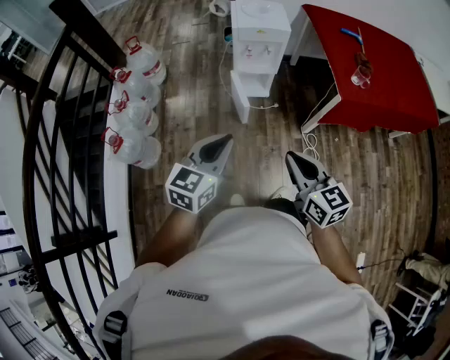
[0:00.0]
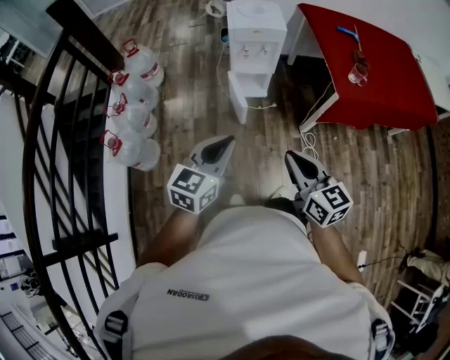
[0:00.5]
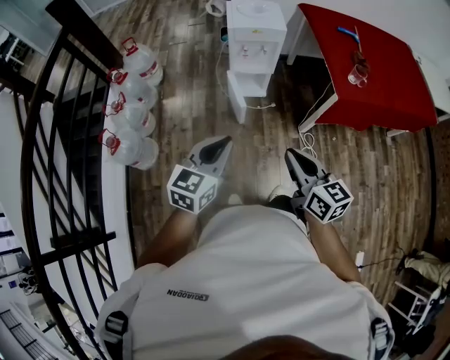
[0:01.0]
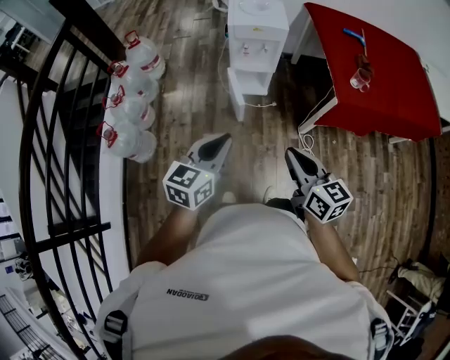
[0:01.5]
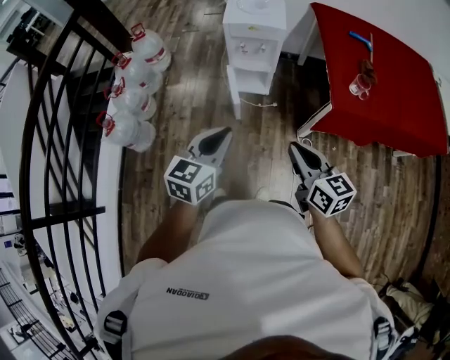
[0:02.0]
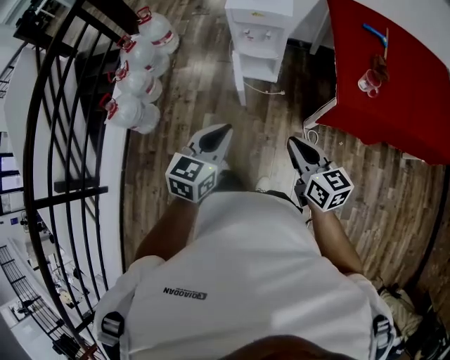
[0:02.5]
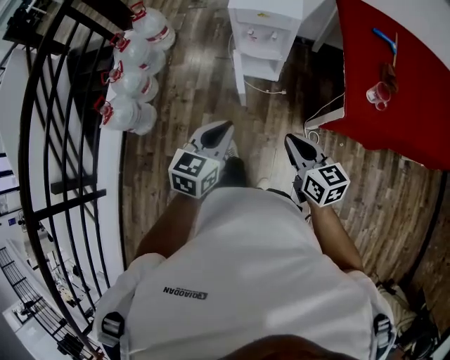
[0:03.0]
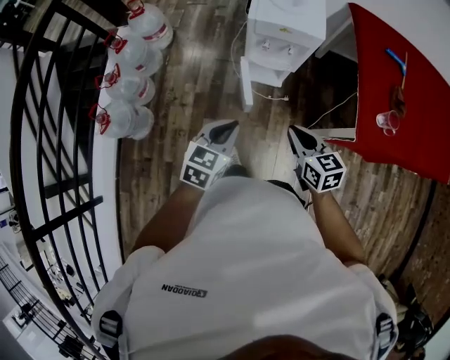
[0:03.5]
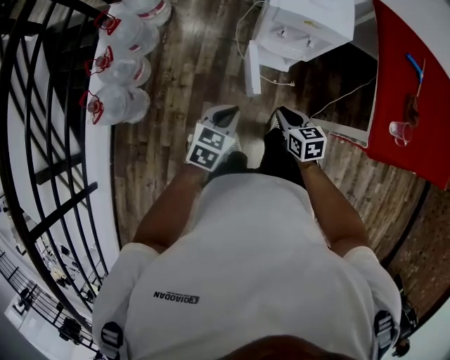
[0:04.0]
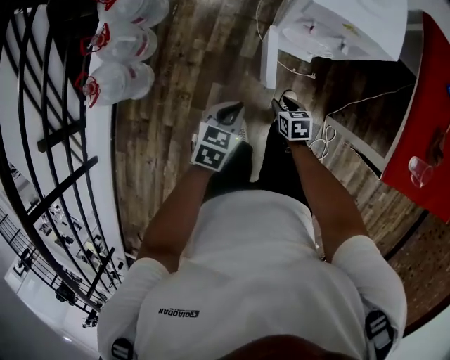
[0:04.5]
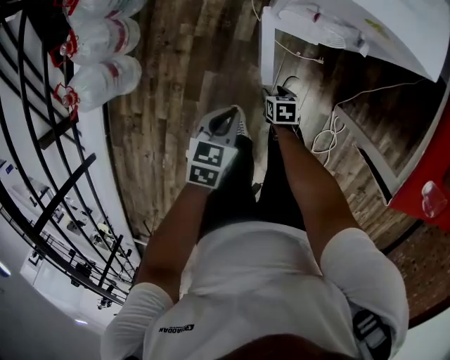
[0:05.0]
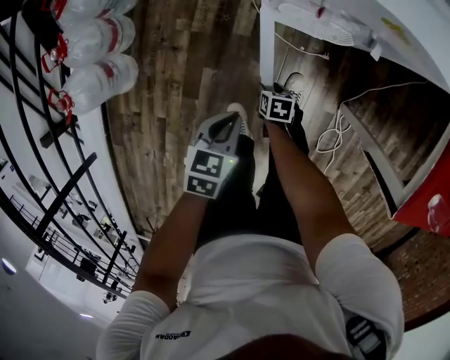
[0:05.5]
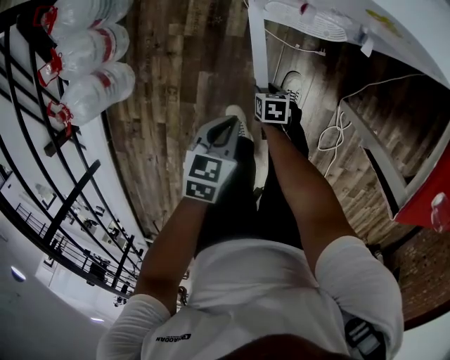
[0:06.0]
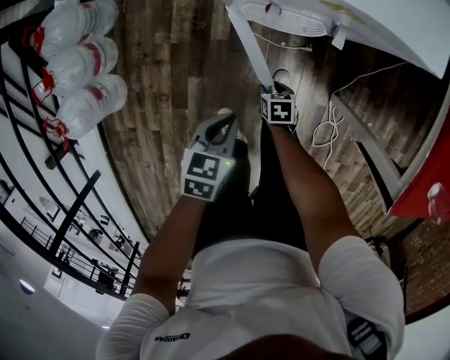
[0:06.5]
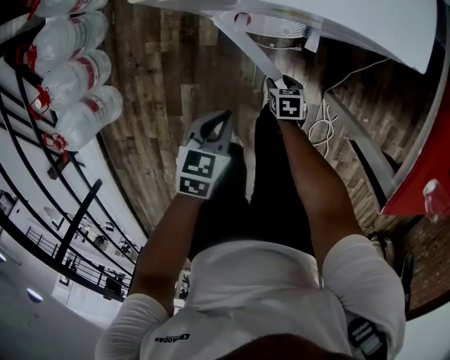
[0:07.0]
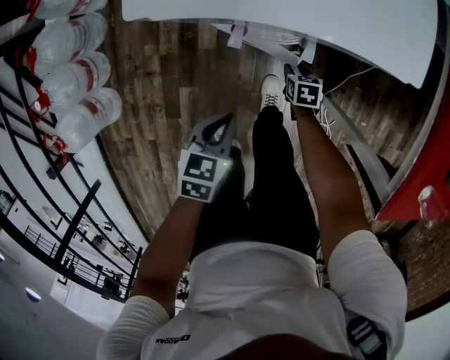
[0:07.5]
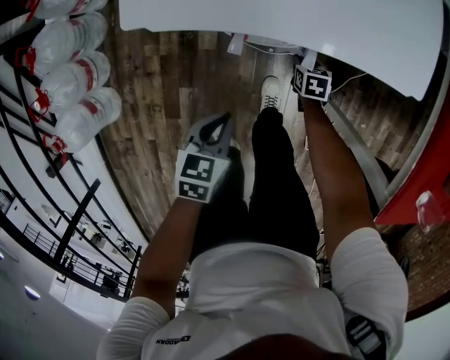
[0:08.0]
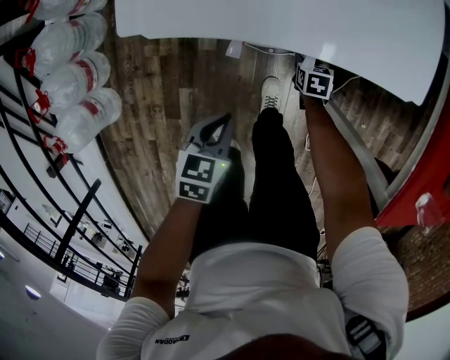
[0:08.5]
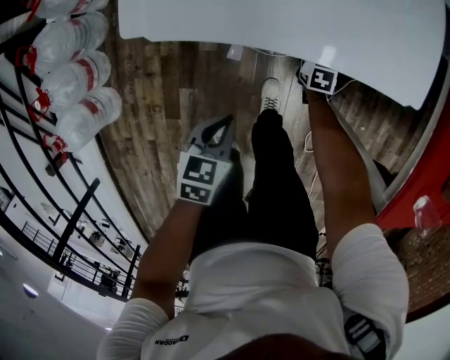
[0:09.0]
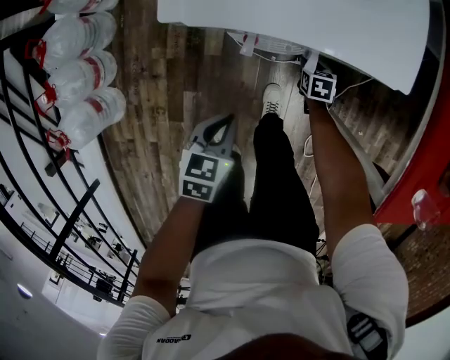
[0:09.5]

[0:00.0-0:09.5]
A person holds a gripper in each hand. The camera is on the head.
0.0 to 2.0 s: The left gripper goes roughly 15 cm to the right, while the right gripper goes approximately 15 cm to the right and forward.
2.0 to 4.0 s: The grippers both shift forward, downward and to the left by roughly 35 cm. The right gripper turns by some 30 degrees; the left gripper swivels about 20 degrees.
4.0 to 5.5 s: The left gripper shifts about 20 cm downward, and rotates roughly 20 degrees, while the right gripper travels downward by approximately 40 cm, turns by some 30 degrees, and opens its fingers.
5.5 to 7.5 s: The left gripper moves to the right and forward, some 10 cm, while the right gripper moves to the right and forward, about 25 cm.
7.5 to 9.5 s: The right gripper shifts by about 5 cm.

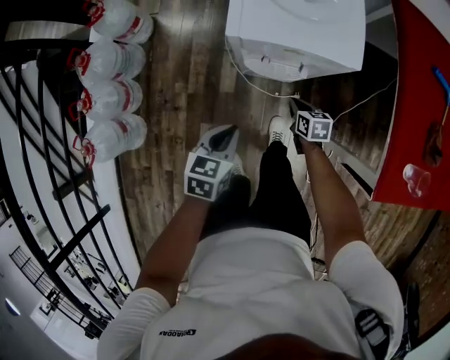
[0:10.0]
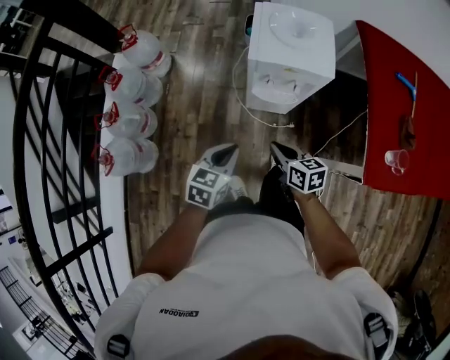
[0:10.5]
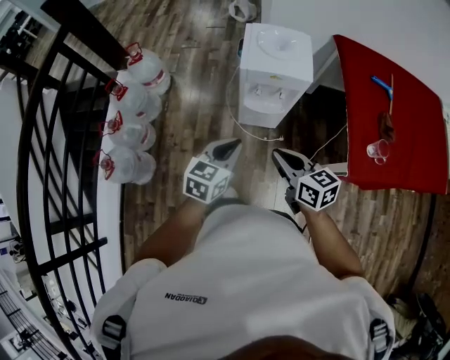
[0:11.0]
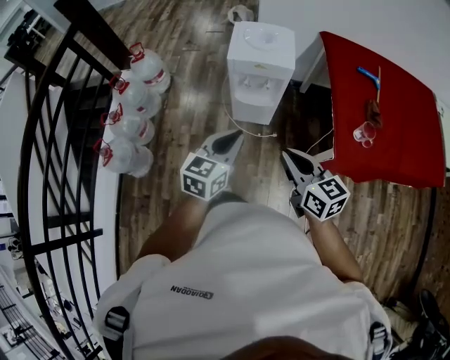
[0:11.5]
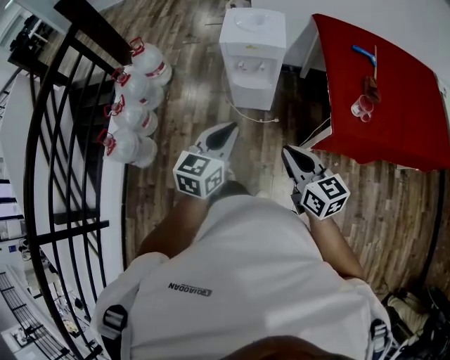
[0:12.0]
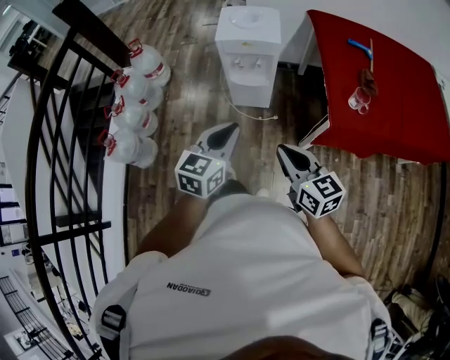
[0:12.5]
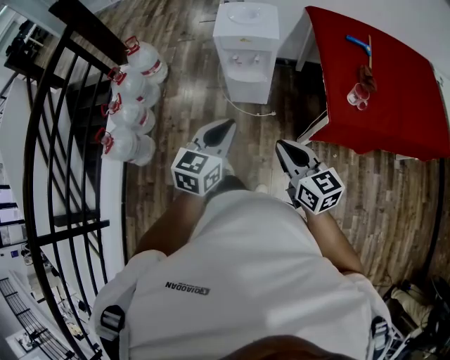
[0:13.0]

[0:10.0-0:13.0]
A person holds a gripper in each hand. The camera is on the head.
10.0 to 11.5 s: The left gripper heads upward and backward, covering roughly 30 cm, and turns by approximately 30 degrees, while the right gripper shifts approximately 50 cm upward and backward, and tips its fingers upward by approximately 30 degrees.
11.5 to 13.0 s: Both grippers move backward, about 10 cm.

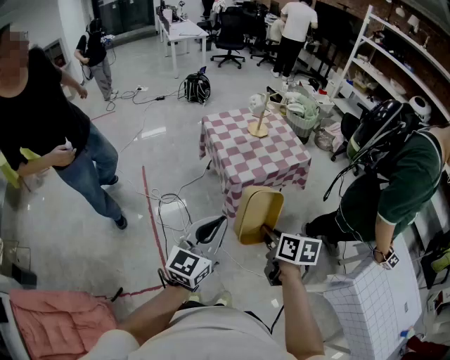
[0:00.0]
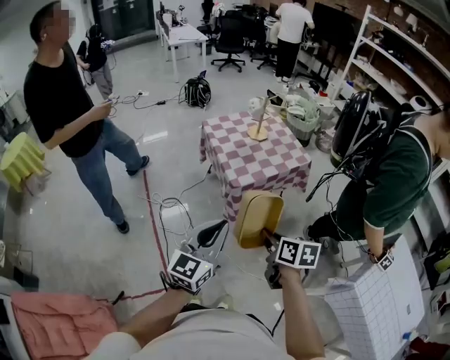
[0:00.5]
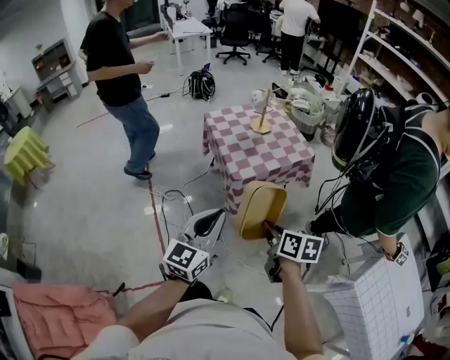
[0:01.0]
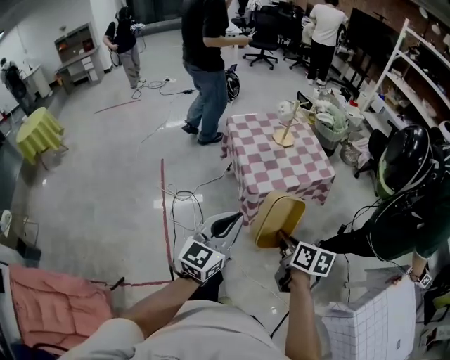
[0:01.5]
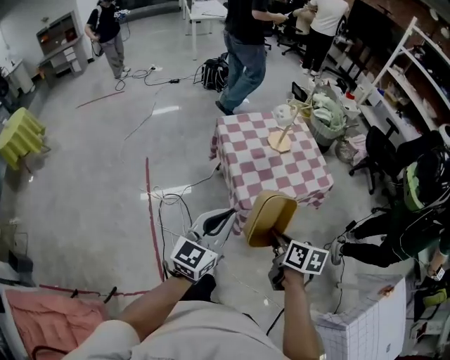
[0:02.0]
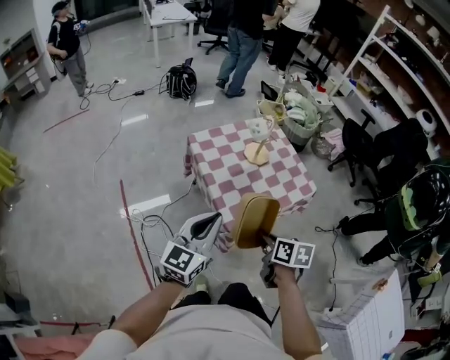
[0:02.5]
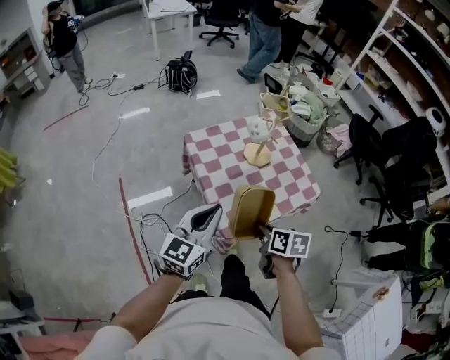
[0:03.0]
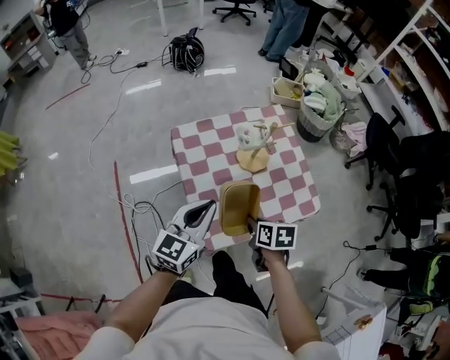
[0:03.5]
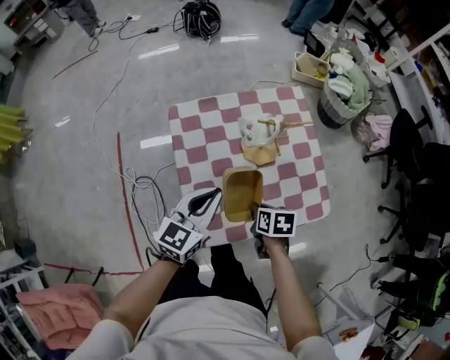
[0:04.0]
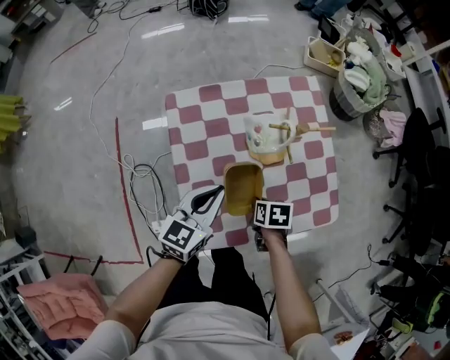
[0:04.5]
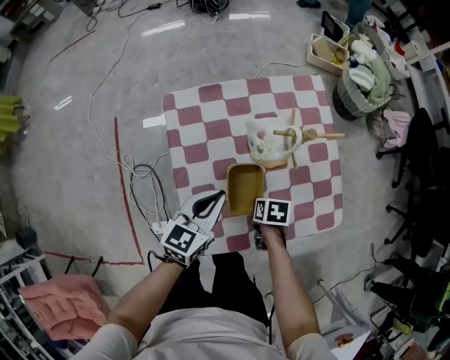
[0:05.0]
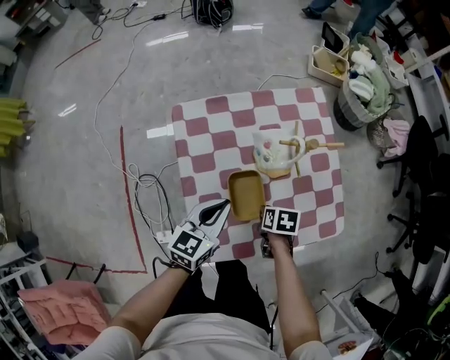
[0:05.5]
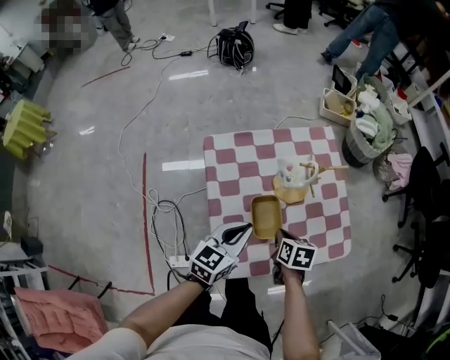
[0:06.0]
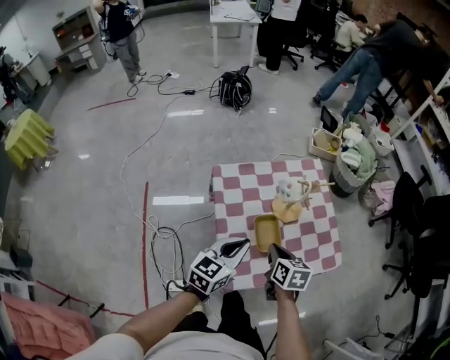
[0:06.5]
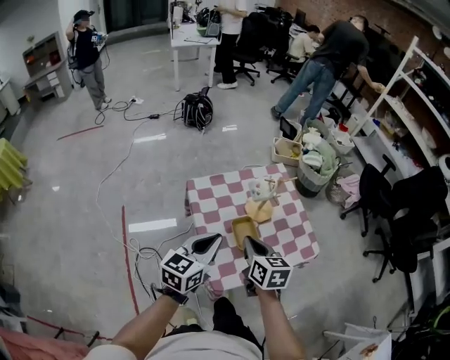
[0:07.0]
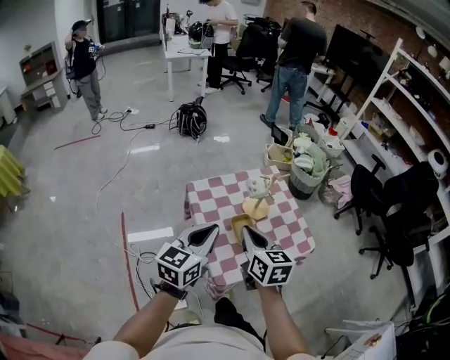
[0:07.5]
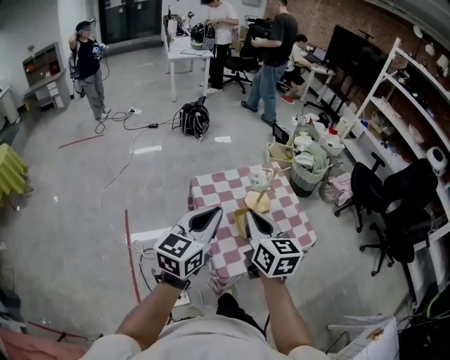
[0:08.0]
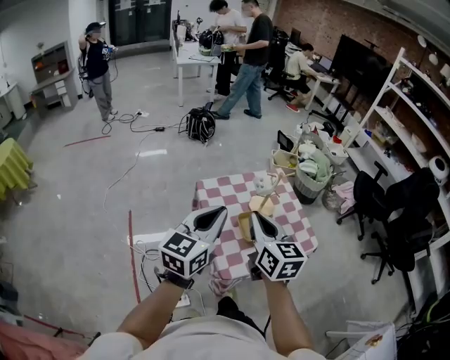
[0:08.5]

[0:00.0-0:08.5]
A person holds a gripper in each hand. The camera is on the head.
0.0 to 2.0 s: The two grippers go approximately 25 cm forward.
2.0 to 4.0 s: Both grippers are carried forward, about 40 cm. The grippers both shift downward by approximately 20 cm. The right gripper changes its angle by some 30 degrees.
4.0 to 6.5 s: The left gripper is displaced to the left by approximately 5 cm, and goes downward and returns, about 10 cm each way. Meanwhile the right gripper heads upward and to the left, covering roughly 15 cm, and rotates approximately 20 degrees.
6.5 to 8.5 s: The right gripper moves upward, some 30 cm, and tilts its fingers roughly 30 degrees upward, while the left gripper travels upward and backward by some 25 cm.

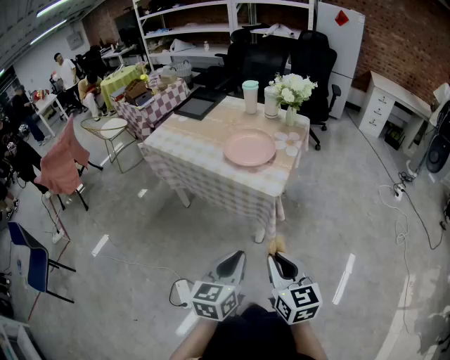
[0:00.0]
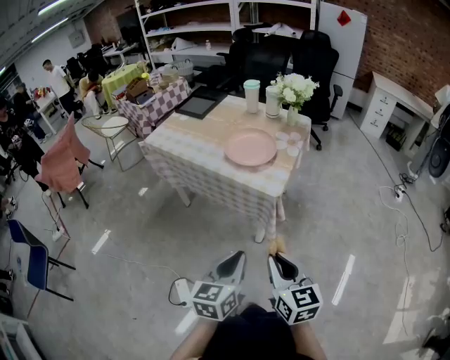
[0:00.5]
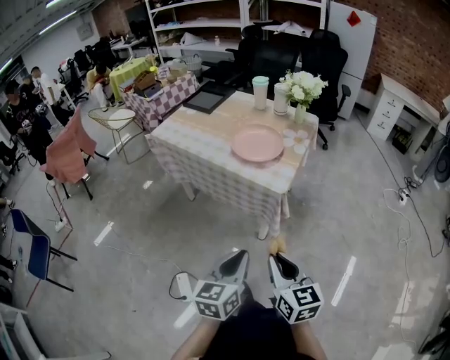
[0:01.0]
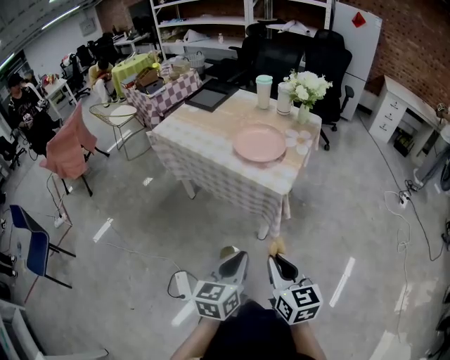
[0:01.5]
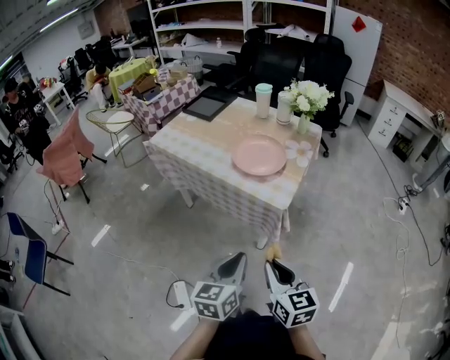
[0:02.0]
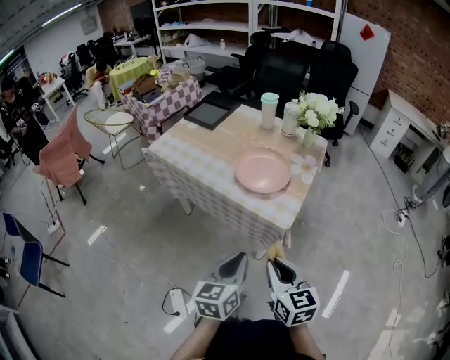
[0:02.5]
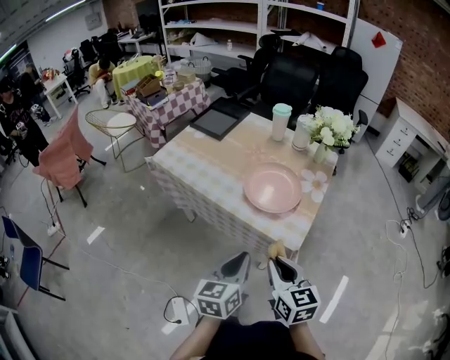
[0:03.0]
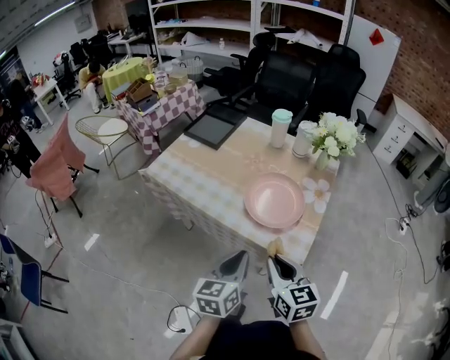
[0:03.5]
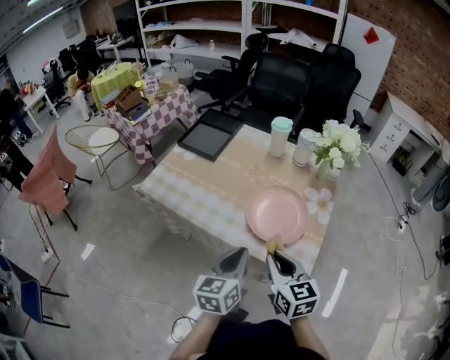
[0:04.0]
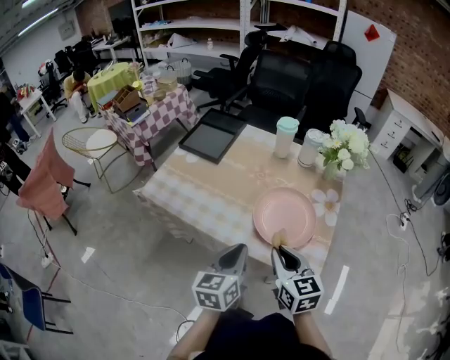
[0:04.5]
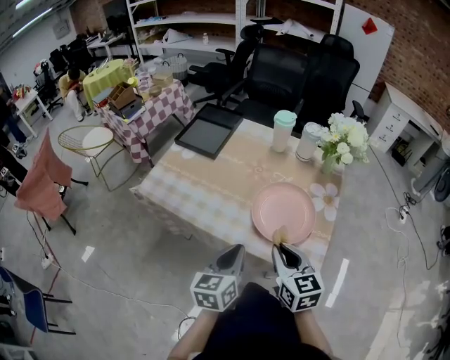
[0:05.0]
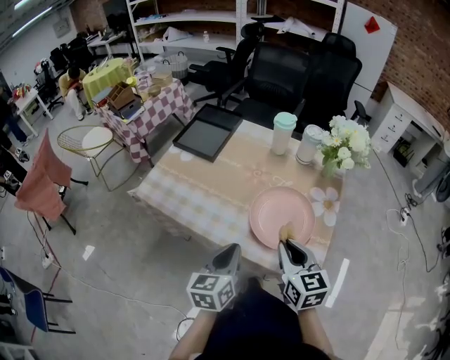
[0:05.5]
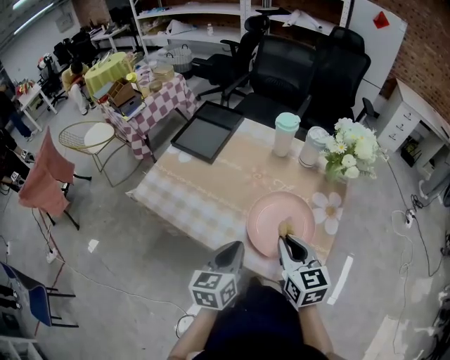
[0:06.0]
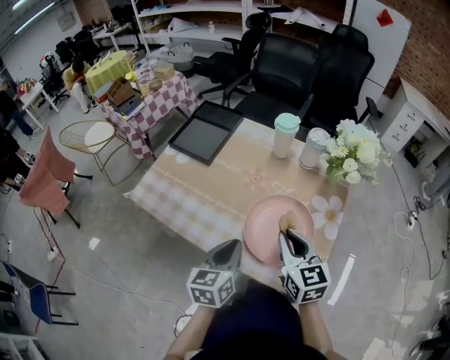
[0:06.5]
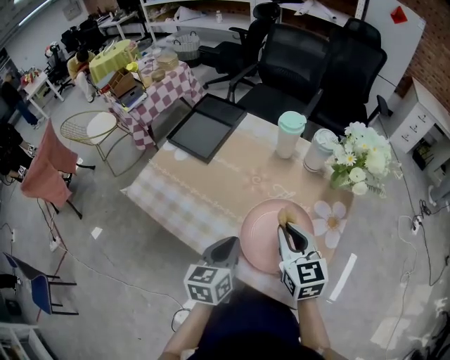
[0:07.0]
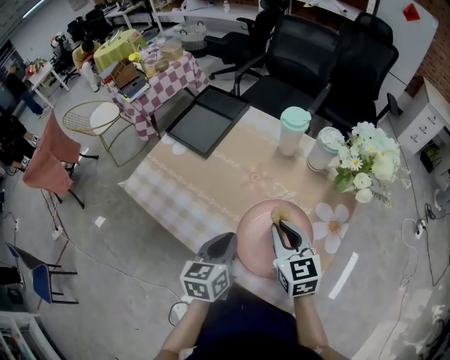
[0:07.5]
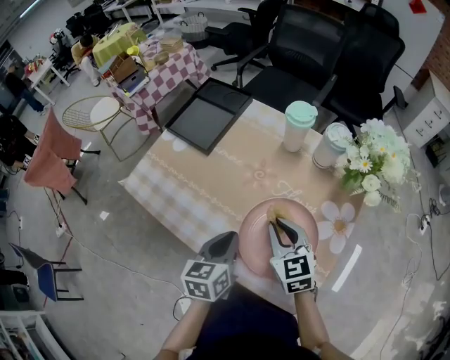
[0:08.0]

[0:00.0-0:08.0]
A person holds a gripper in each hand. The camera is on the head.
0.0 to 2.0 s: There are only small adjustments of the grippers.
2.0 to 4.0 s: Both grippers move forward, some 30 cm.
4.0 to 6.0 s: Both grippers move forward, about 10 cm.
6.0 to 8.0 s: Both grippers move forward and downward, roughly 10 cm.
